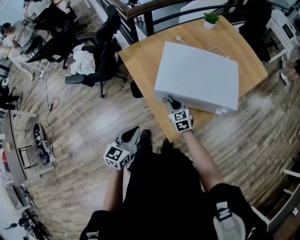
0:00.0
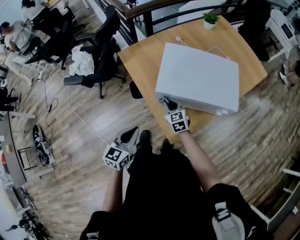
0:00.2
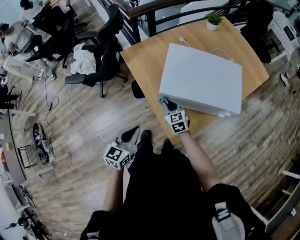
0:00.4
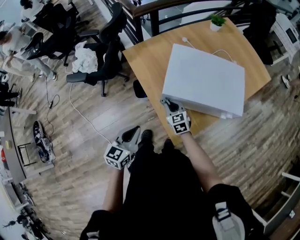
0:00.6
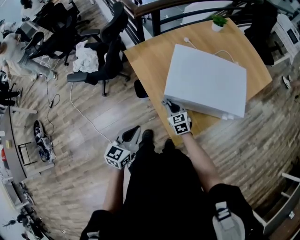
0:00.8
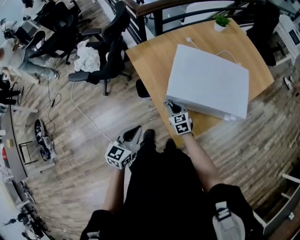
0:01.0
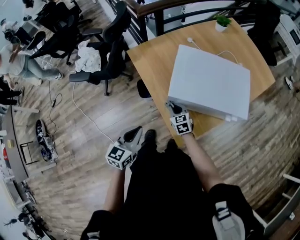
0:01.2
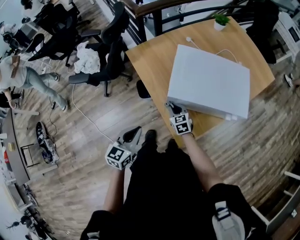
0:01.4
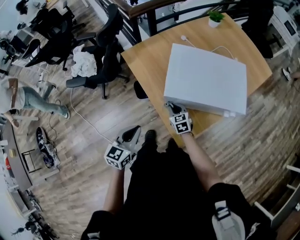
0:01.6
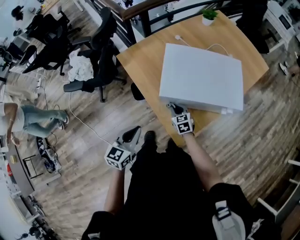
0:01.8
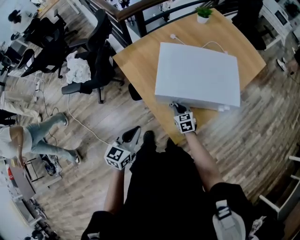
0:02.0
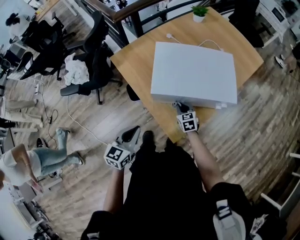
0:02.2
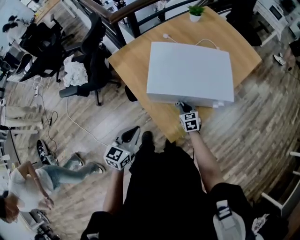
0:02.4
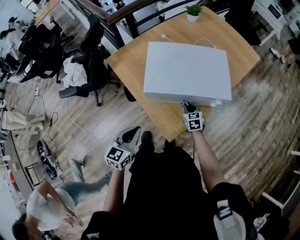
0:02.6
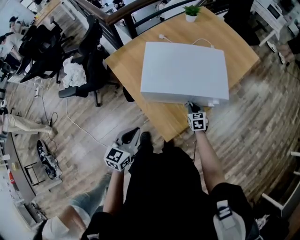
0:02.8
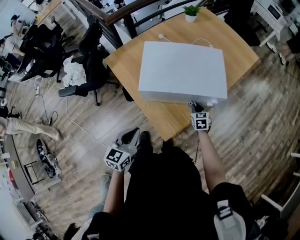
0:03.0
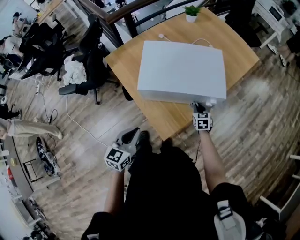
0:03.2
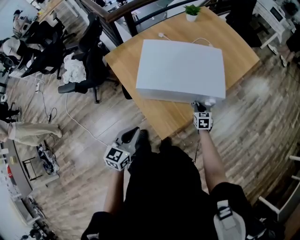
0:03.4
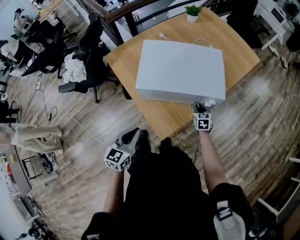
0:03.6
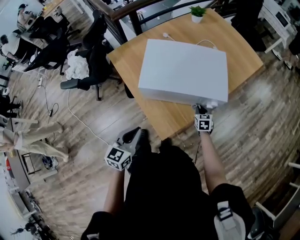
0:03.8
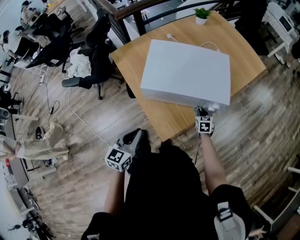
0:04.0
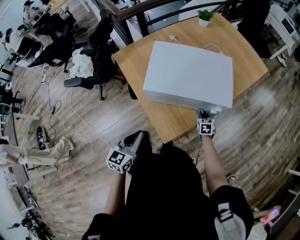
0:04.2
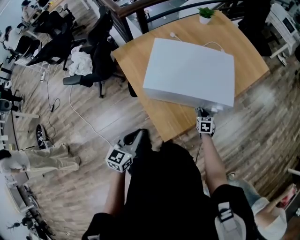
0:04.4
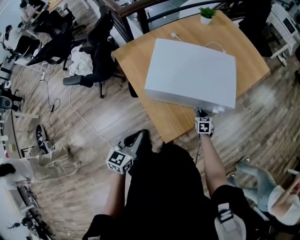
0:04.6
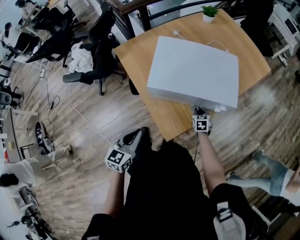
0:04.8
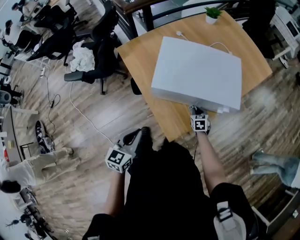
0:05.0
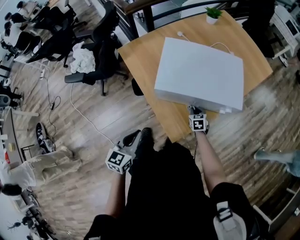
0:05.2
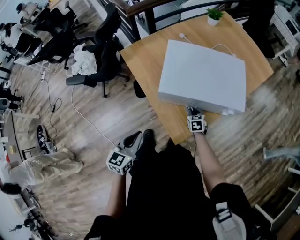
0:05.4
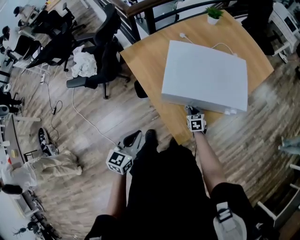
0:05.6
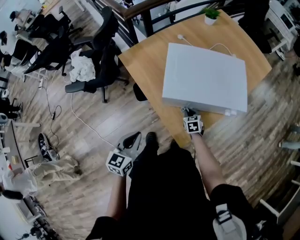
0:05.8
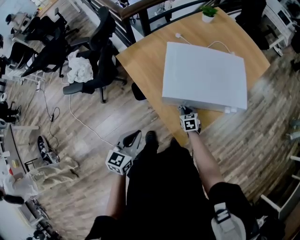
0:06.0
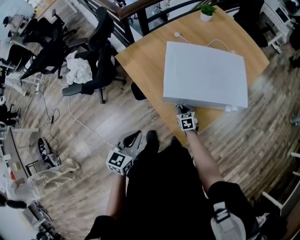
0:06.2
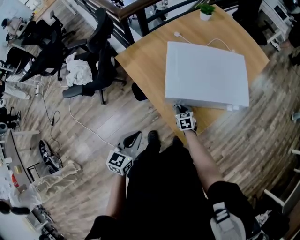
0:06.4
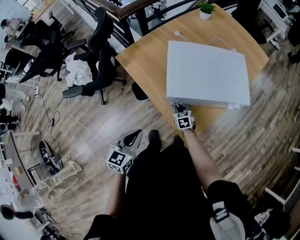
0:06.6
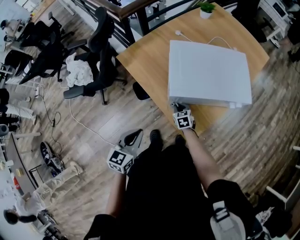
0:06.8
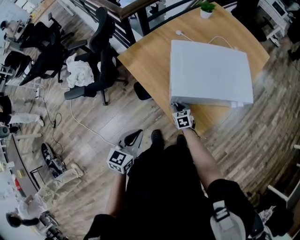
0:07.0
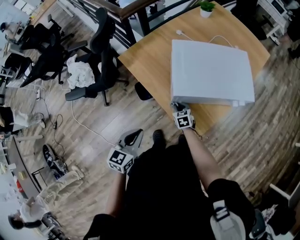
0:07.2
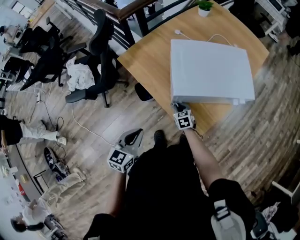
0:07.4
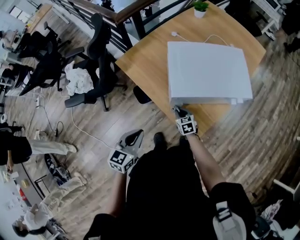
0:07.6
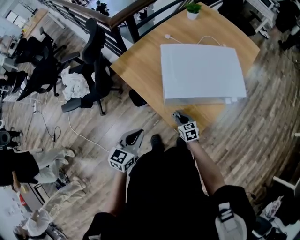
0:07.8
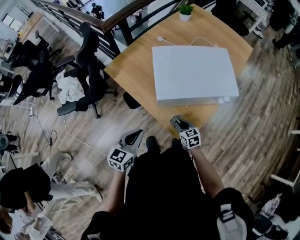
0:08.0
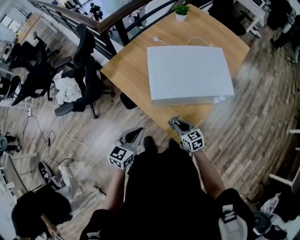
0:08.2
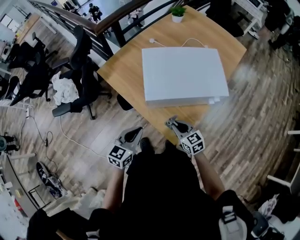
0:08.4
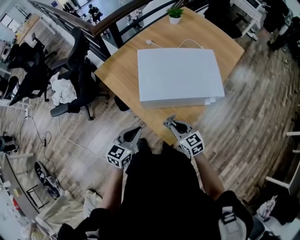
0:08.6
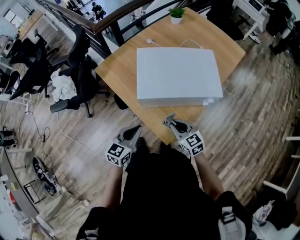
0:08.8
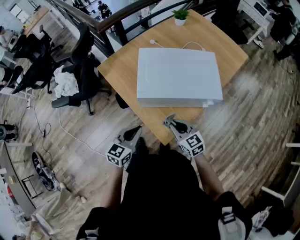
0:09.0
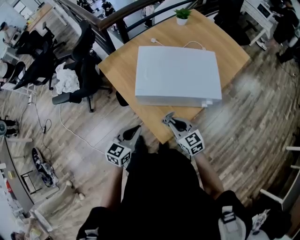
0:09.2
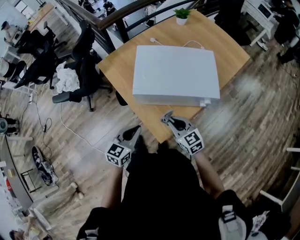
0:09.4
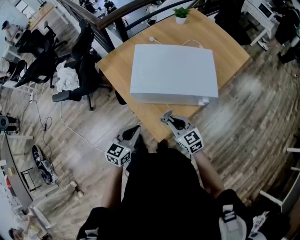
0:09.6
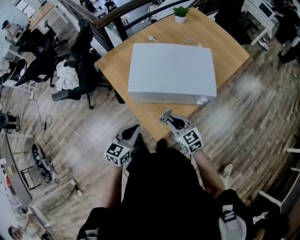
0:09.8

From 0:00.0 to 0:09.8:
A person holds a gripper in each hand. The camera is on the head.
From 0:00.0 to 0:01.4: The left gripper goes approximately 5 cm to the left. The right gripper heads downward and to the left, covering some 10 cm.
From 0:01.4 to 0:02.8: The right gripper goes roughly 25 cm to the right, and changes its angle by roughly 20 degrees, while the left gripper heads to the right, covering about 10 cm.
From 0:02.8 to 0:04.2: The right gripper goes approximately 5 cm to the right.
From 0:04.2 to 0:05.6: The right gripper goes approximately 15 cm to the left, while the left gripper moves to the left, roughly 10 cm.
From 0:05.6 to 0:07.0: The right gripper shifts some 15 cm to the left, while the left gripper is displaced to the left by roughly 5 cm.
From 0:07.0 to 0:08.4: The left gripper goes approximately 10 cm to the right; the right gripper travels upward, to the right and backward by roughly 20 cm.
From 0:08.4 to 0:09.8: Both grippers travel together to the right, roughly 10 cm.

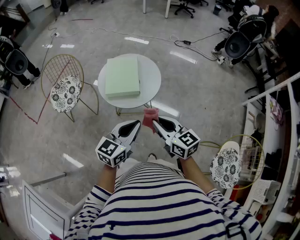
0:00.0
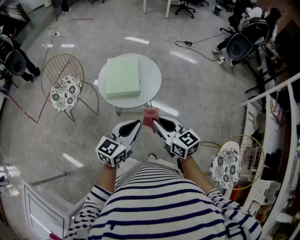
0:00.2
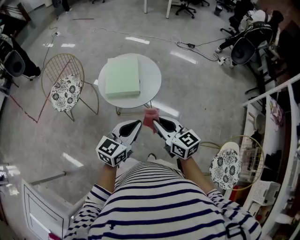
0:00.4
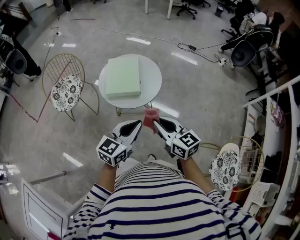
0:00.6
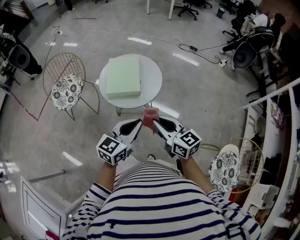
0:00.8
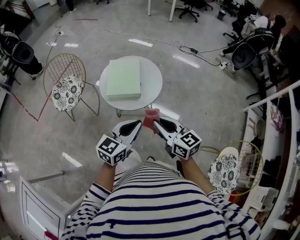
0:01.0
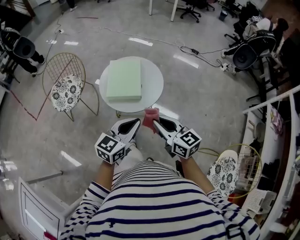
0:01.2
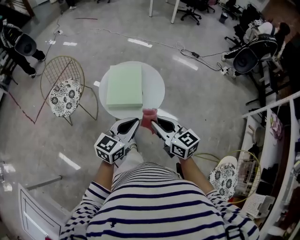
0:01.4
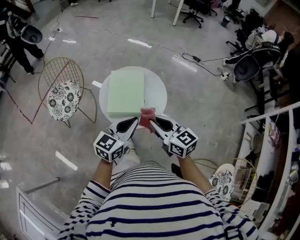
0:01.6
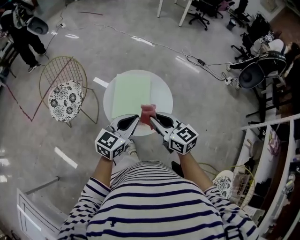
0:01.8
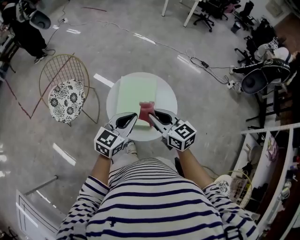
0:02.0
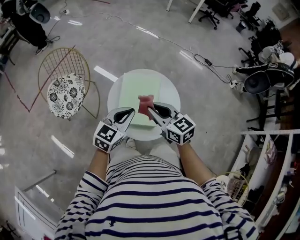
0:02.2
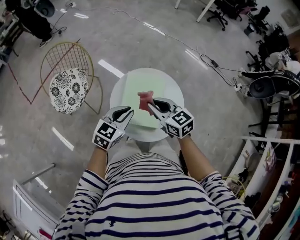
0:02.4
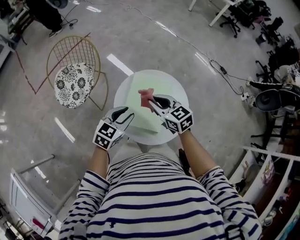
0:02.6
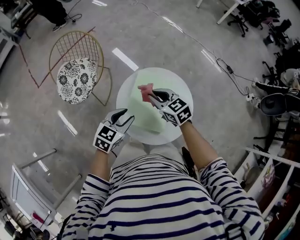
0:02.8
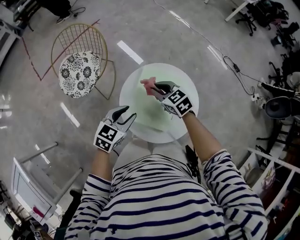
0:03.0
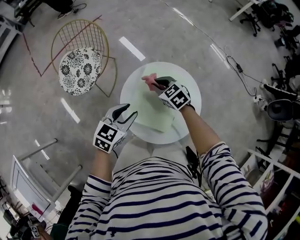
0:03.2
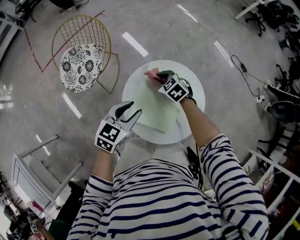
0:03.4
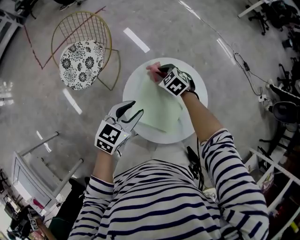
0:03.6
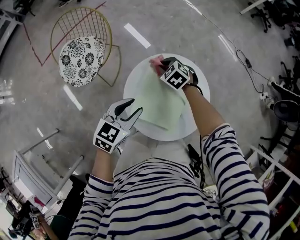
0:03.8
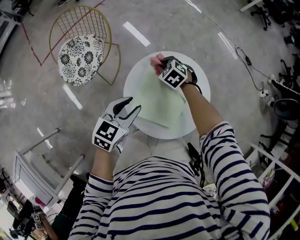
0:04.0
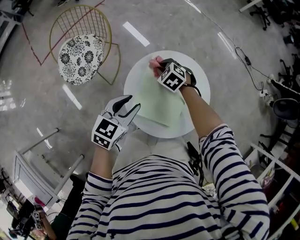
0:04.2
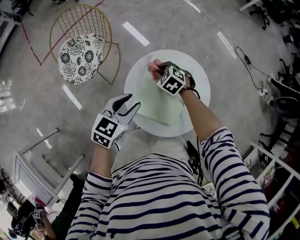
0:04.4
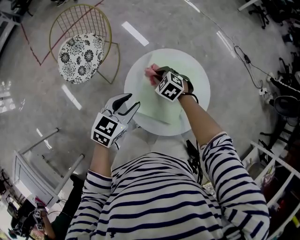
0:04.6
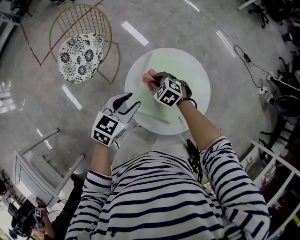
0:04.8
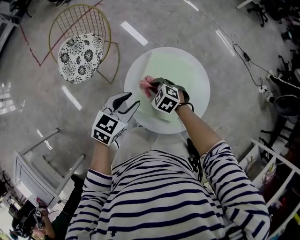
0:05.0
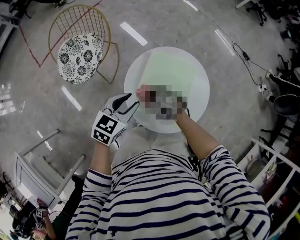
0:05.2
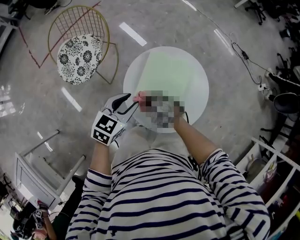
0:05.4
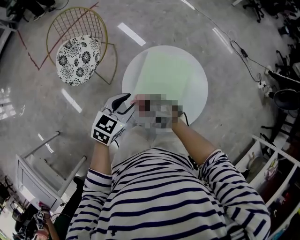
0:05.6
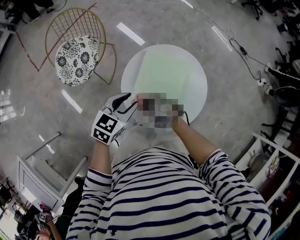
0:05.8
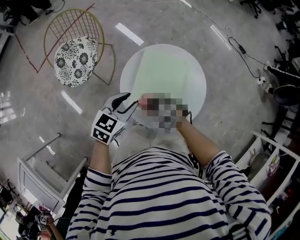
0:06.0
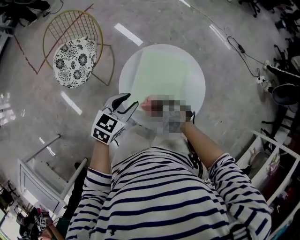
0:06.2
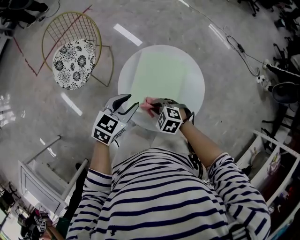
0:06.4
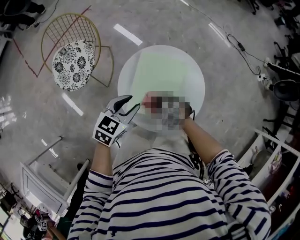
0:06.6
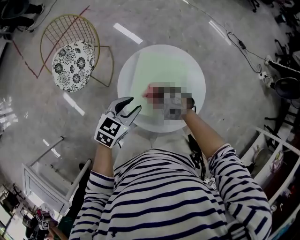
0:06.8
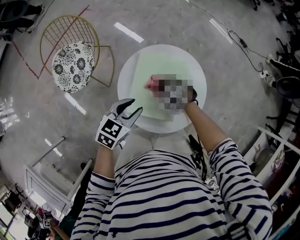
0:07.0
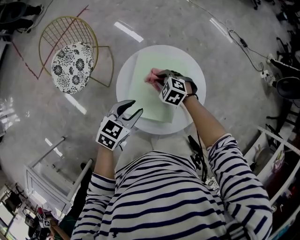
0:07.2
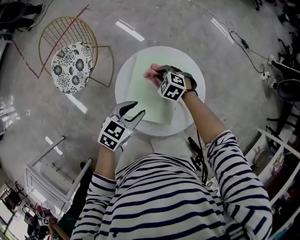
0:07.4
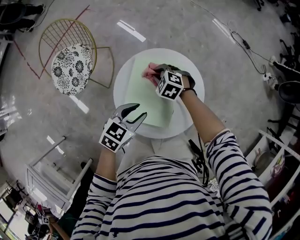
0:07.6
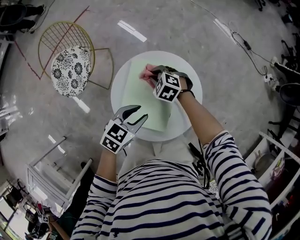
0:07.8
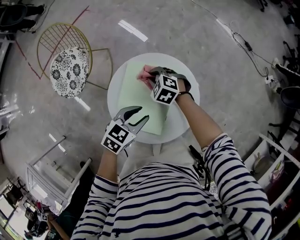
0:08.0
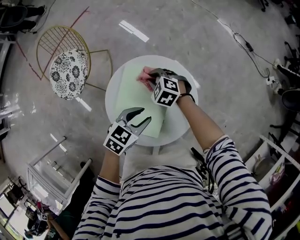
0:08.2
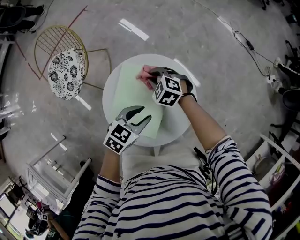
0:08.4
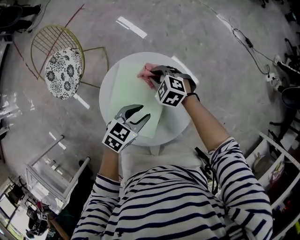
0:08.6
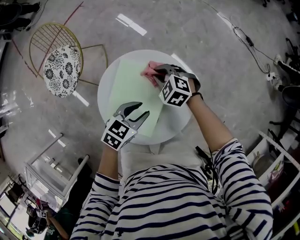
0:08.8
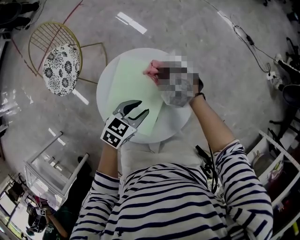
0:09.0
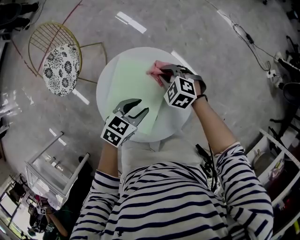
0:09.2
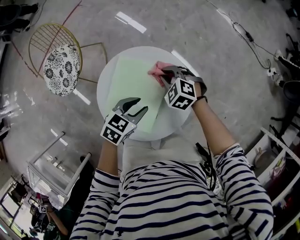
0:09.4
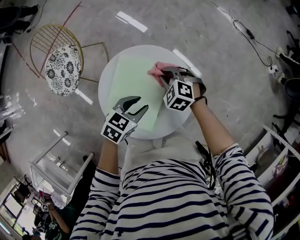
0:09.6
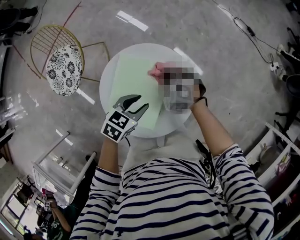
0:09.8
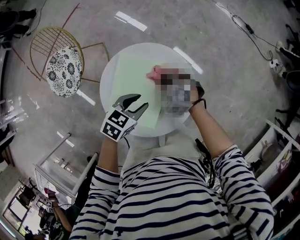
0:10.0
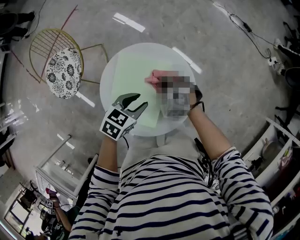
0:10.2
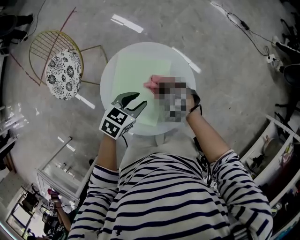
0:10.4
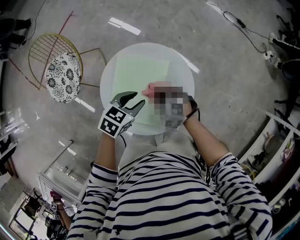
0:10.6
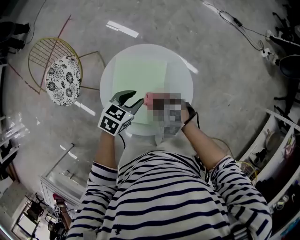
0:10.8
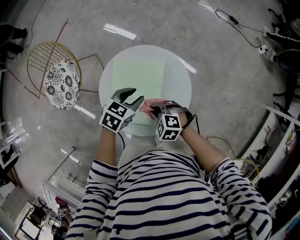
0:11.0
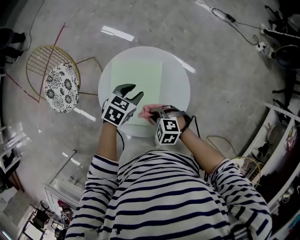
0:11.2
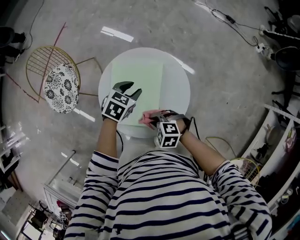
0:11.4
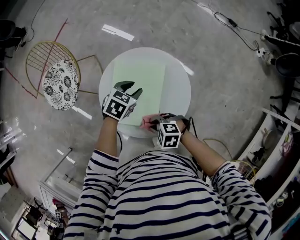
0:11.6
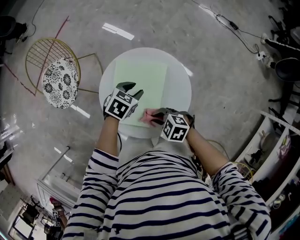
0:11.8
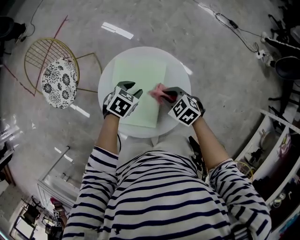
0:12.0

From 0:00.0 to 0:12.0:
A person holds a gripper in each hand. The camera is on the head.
From 0:00.0 to 0:01.6: The two grippers go roughly 15 cm forward.
From 0:01.6 to 0:03.0: The right gripper heads forward and downward, covering roughly 35 cm, and swivels some 40 degrees. The left gripper travels forward, downward and to the left by about 25 cm, swivels roughly 30 degrees, and opens up.
From 0:03.0 to 0:04.4: The right gripper travels downward by some 10 cm, and turns by approximately 30 degrees.
From 0:04.4 to 0:06.0: The right gripper moves backward, roughly 20 cm.
From 0:06.0 to 0:07.6: The right gripper is displaced forward and to the right by approximately 20 cm. The left gripper goes roughly 10 cm to the right.
From 0:07.6 to 0:09.0: The grippers both shift to the right by about 10 cm.
From 0:09.0 to 0:10.4: The right gripper is displaced backward by some 10 cm.
From 0:10.4 to 0:12.0: The right gripper changes its angle by approximately 20 degrees; the left gripper travels downward by roughly 5 cm.

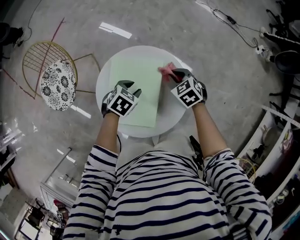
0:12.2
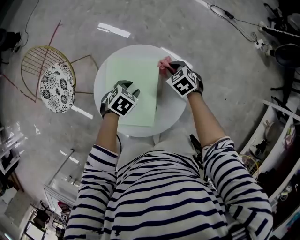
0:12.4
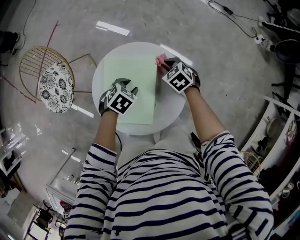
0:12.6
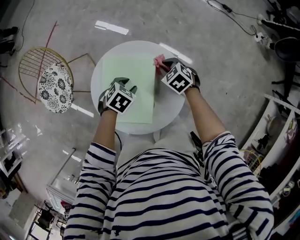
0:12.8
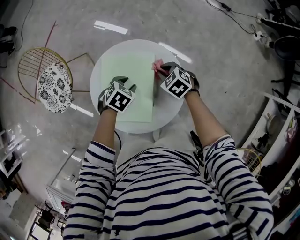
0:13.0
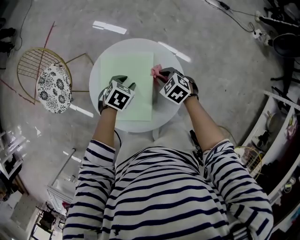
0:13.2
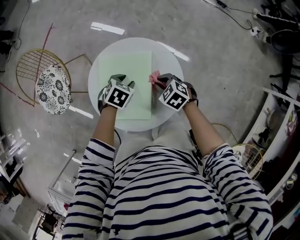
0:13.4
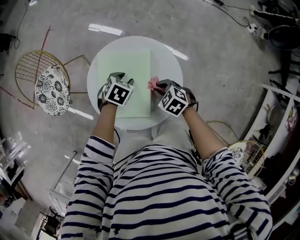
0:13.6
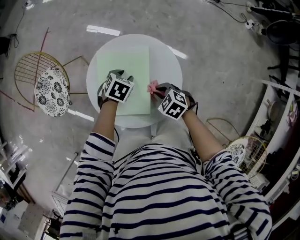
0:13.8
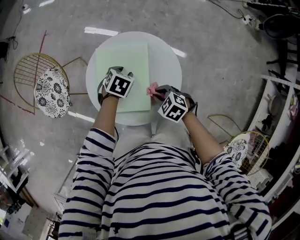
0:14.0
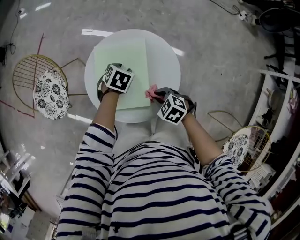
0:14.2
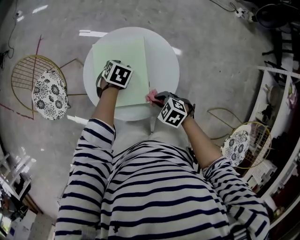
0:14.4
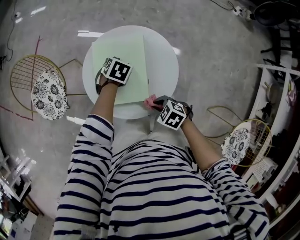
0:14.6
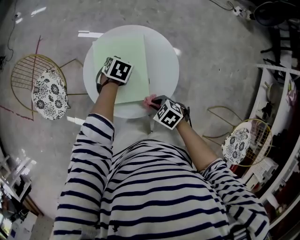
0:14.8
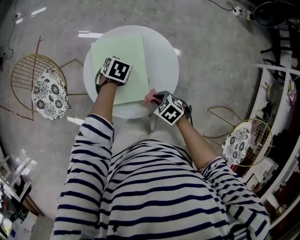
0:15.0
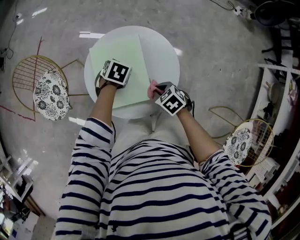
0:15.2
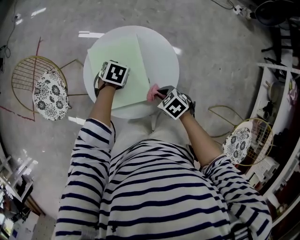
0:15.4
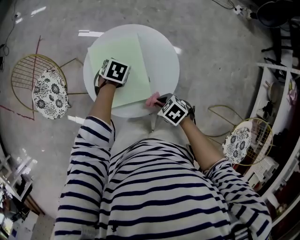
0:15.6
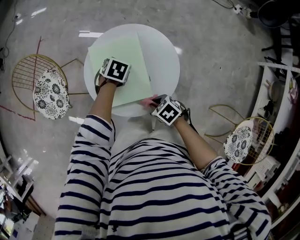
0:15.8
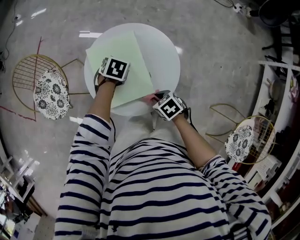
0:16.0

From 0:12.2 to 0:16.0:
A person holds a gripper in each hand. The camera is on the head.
From 0:12.2 to 0:13.4: The right gripper is displaced backward by approximately 10 cm.
From 0:13.4 to 0:14.8: The right gripper travels backward and to the left by roughly 20 cm.
